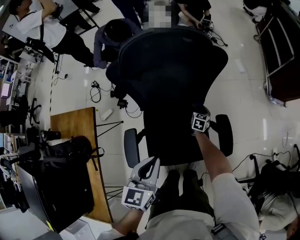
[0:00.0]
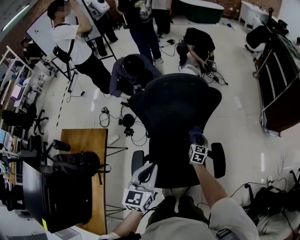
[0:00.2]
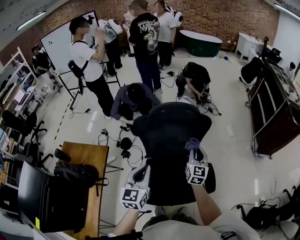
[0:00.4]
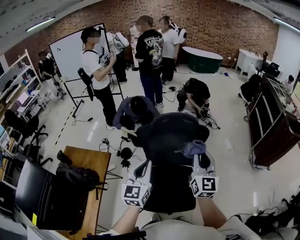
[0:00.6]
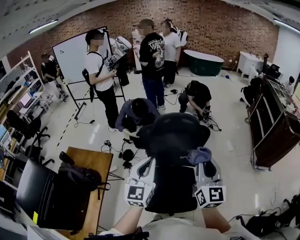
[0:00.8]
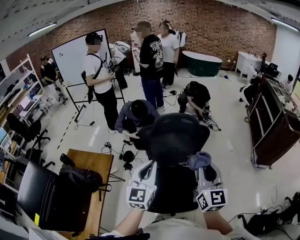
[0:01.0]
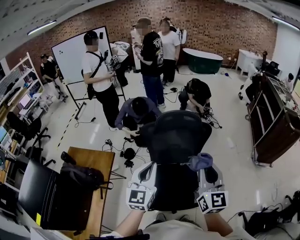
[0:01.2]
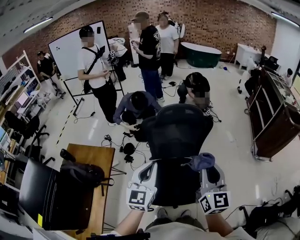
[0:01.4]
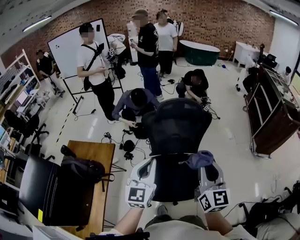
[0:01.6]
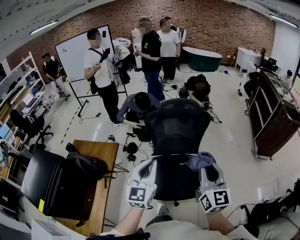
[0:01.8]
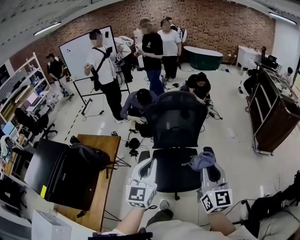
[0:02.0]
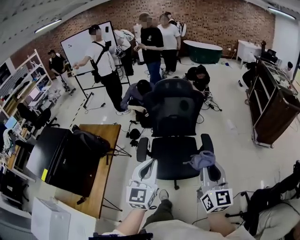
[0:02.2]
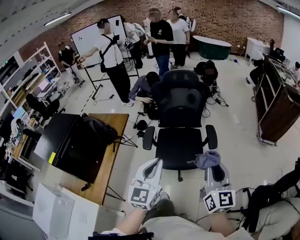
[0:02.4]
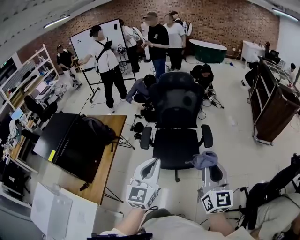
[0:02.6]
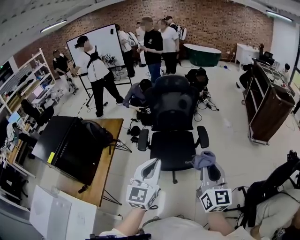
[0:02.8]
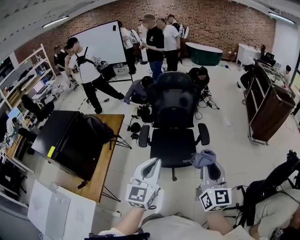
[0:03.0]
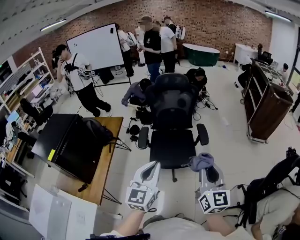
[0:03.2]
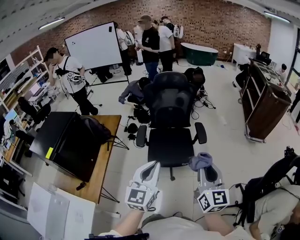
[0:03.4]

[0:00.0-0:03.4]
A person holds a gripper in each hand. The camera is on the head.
0:00.0 to 0:01.6: The left gripper goes approximately 35 cm backward, to the left and upward, and swivels approximately 30 degrees, while the right gripper moves upward and backward, roughly 80 cm, and angles its fingers upward, by approximately 60 degrees.
0:01.6 to 0:03.4: The two grippers travel together, backward, roughly 40 cm.

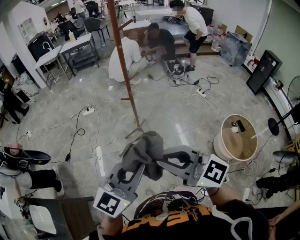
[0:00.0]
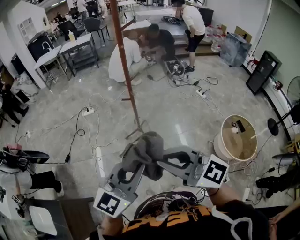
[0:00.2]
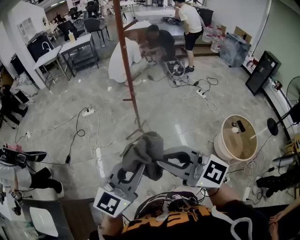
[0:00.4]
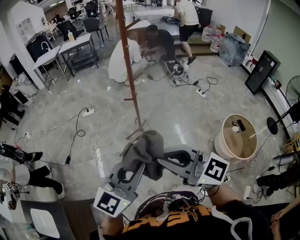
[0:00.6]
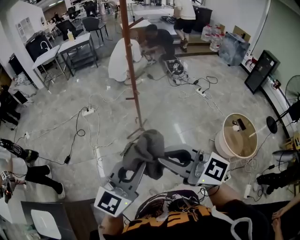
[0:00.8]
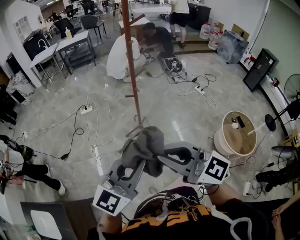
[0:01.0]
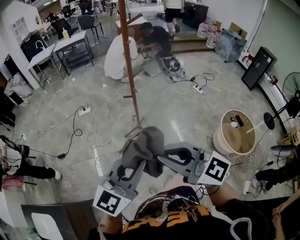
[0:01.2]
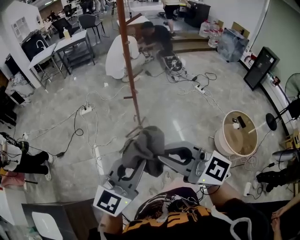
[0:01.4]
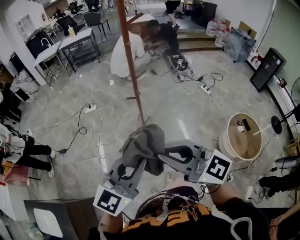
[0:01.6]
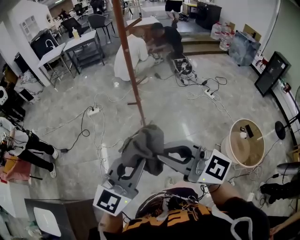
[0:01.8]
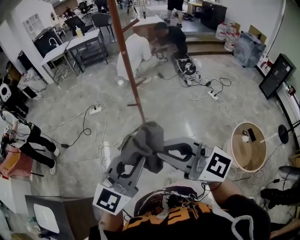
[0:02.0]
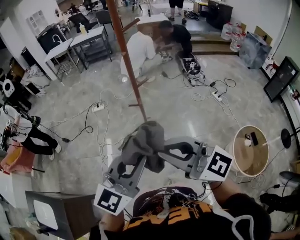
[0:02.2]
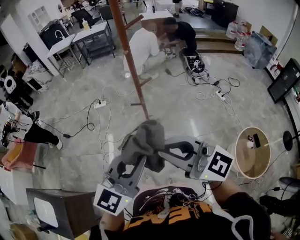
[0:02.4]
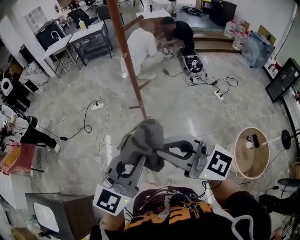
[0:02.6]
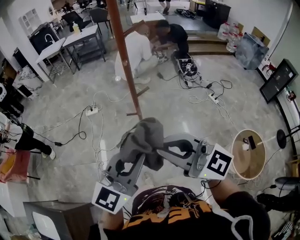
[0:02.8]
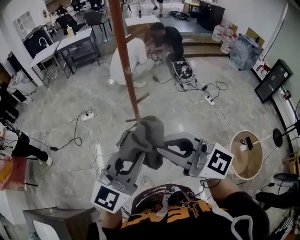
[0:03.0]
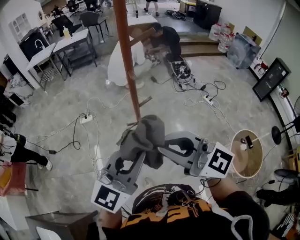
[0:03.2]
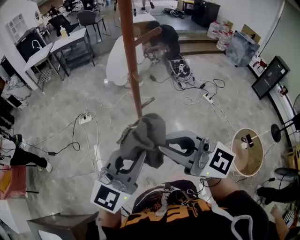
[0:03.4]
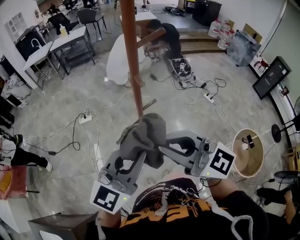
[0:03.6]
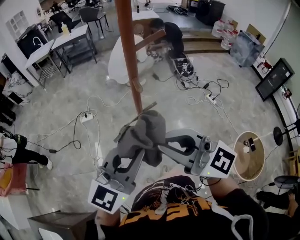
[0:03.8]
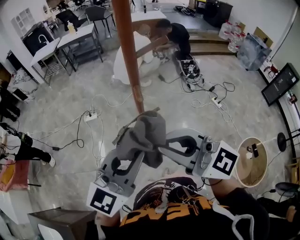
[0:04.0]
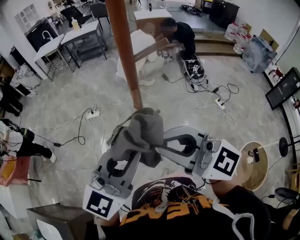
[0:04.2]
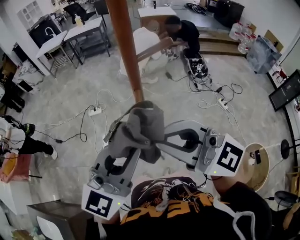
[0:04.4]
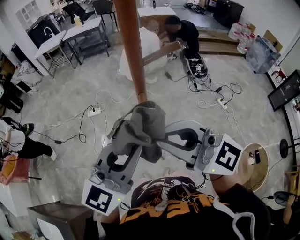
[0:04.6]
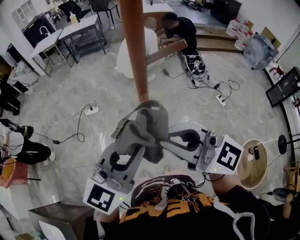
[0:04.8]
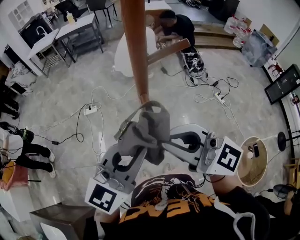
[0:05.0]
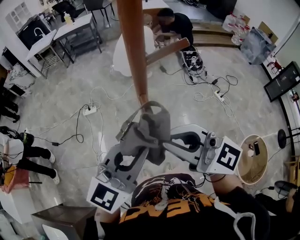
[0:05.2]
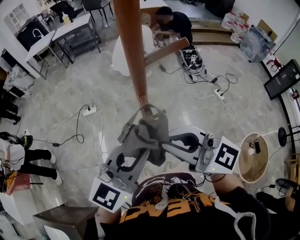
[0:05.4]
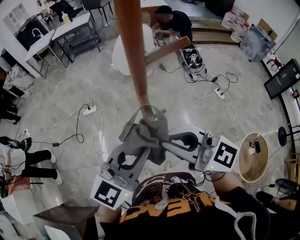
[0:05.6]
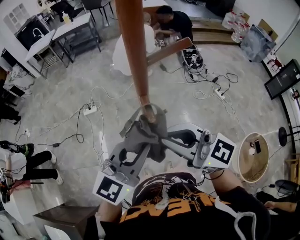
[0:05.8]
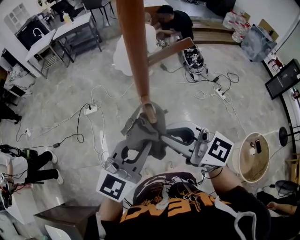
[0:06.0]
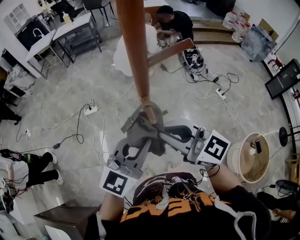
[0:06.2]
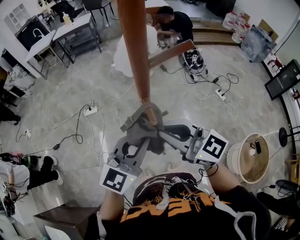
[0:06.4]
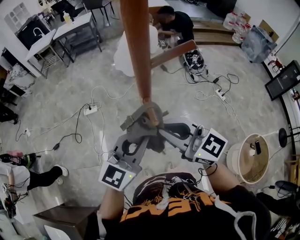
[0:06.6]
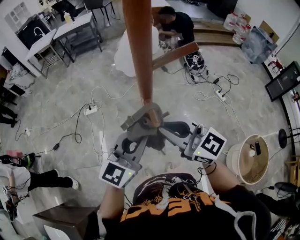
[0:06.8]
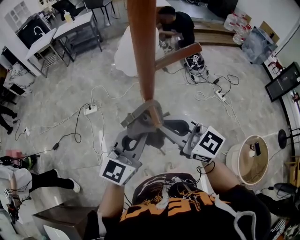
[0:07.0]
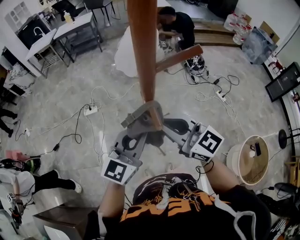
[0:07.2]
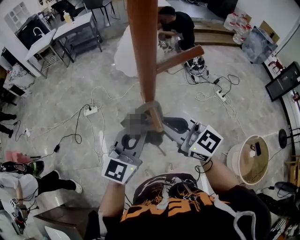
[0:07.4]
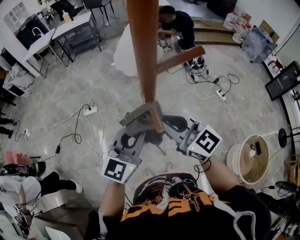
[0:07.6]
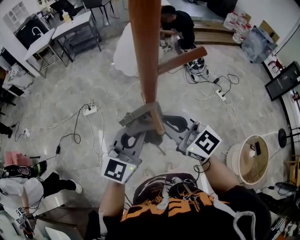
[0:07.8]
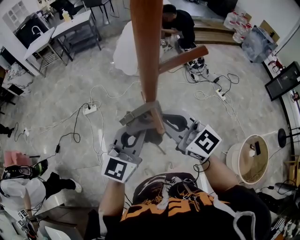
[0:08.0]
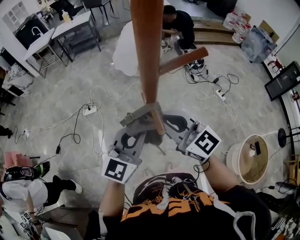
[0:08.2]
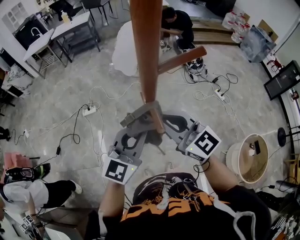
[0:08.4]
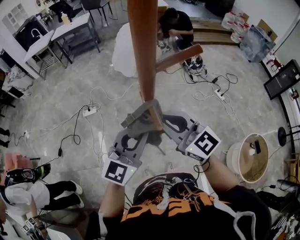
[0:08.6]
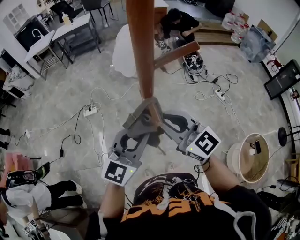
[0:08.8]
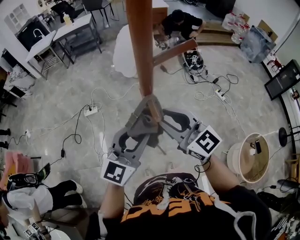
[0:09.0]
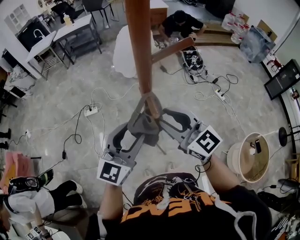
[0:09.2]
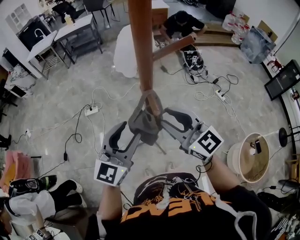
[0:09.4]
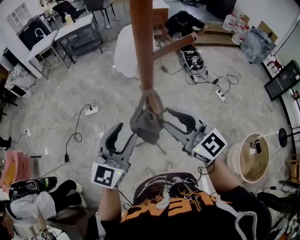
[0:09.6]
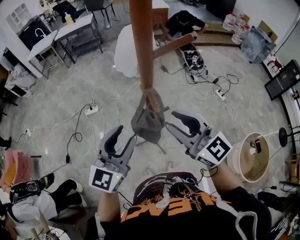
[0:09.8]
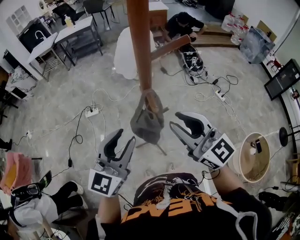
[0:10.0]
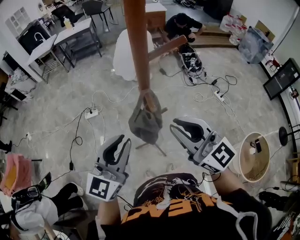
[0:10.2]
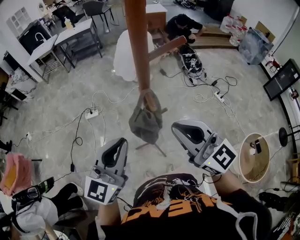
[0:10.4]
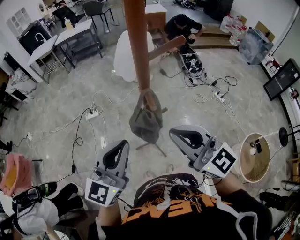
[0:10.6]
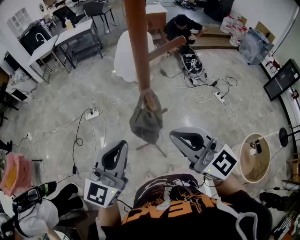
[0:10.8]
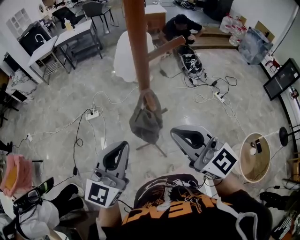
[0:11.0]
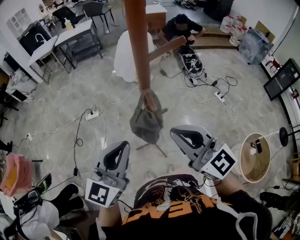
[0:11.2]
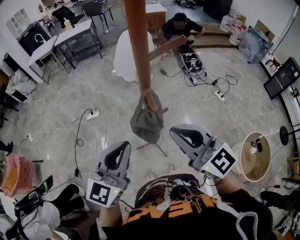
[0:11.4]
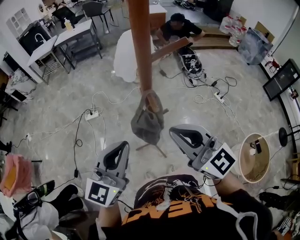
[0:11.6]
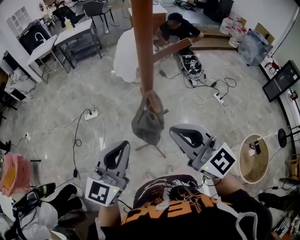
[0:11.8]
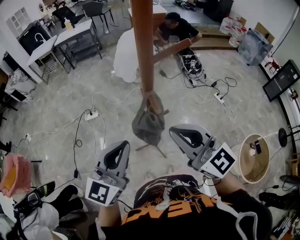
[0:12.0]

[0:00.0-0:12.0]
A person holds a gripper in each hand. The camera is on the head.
0:00.0 to 0:01.6: Both grippers move forward, about 10 cm.
0:01.6 to 0:03.0: The grippers both shift forward by approximately 25 cm.
0:03.0 to 0:04.4: Both grippers move forward, approximately 15 cm.
0:04.4 to 0:06.0: Both grippers move downward and forward, some 10 cm.
0:06.0 to 0:07.6: The grippers both shift forward by approximately 10 cm.
0:07.6 to 0:09.0: The right gripper opens. The left gripper opens.
0:09.0 to 0:10.4: The right gripper is displaced backward and upward by about 10 cm, and closes up; the left gripper travels to the left and backward by about 10 cm, and closes.
0:10.4 to 0:12.0: There are only small adjustments of the grippers.

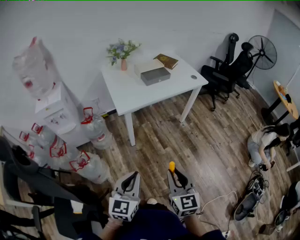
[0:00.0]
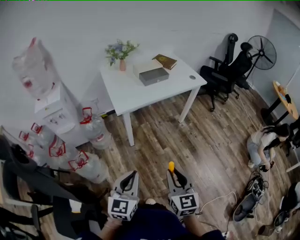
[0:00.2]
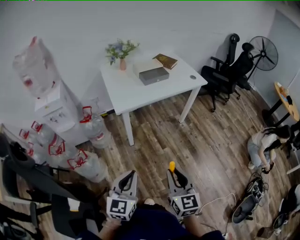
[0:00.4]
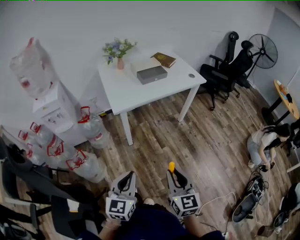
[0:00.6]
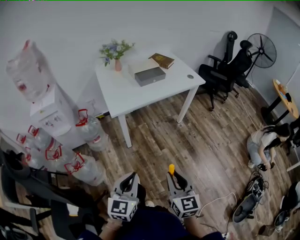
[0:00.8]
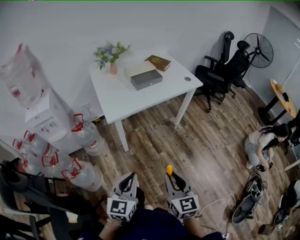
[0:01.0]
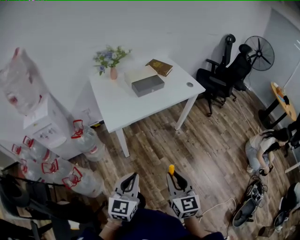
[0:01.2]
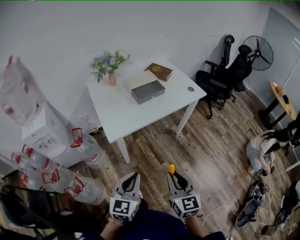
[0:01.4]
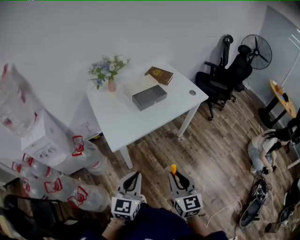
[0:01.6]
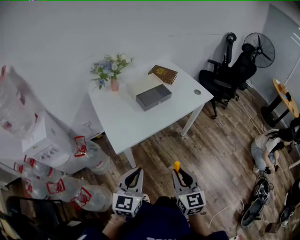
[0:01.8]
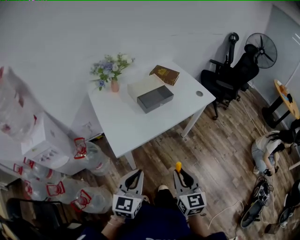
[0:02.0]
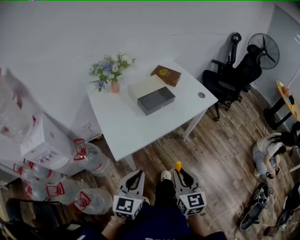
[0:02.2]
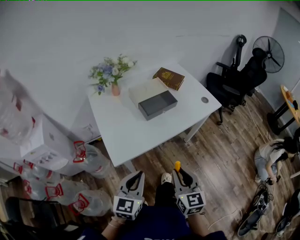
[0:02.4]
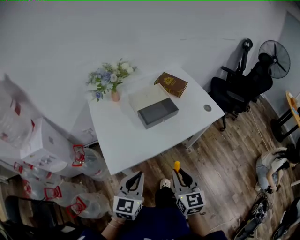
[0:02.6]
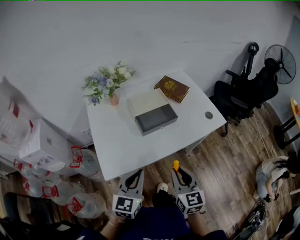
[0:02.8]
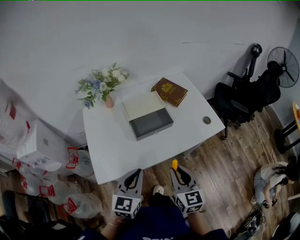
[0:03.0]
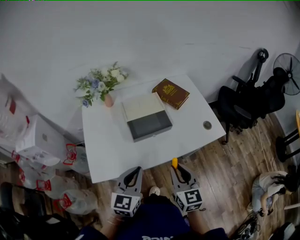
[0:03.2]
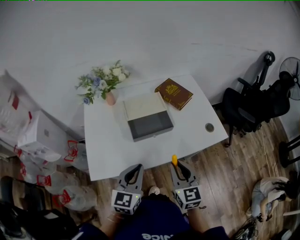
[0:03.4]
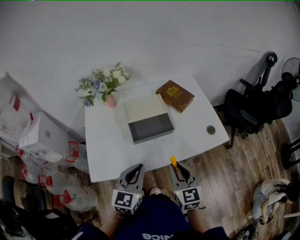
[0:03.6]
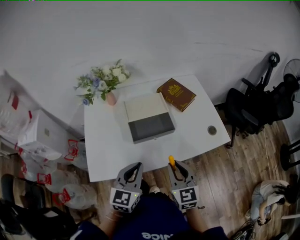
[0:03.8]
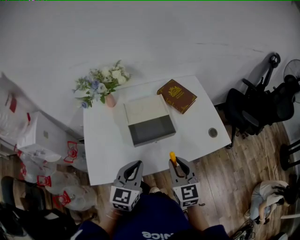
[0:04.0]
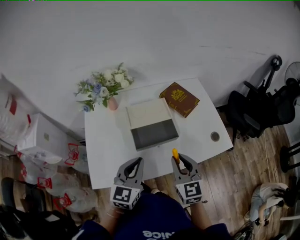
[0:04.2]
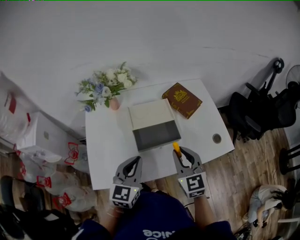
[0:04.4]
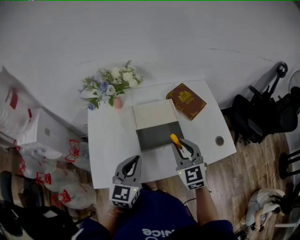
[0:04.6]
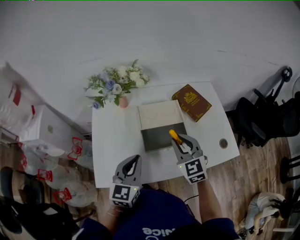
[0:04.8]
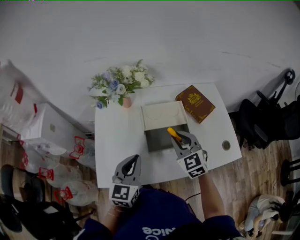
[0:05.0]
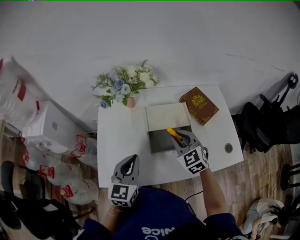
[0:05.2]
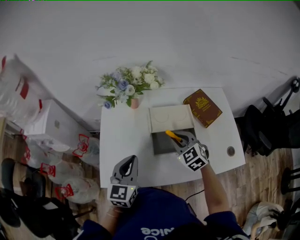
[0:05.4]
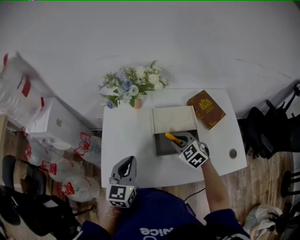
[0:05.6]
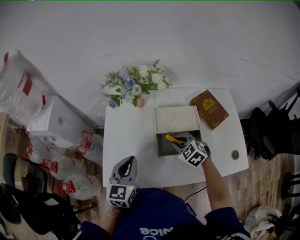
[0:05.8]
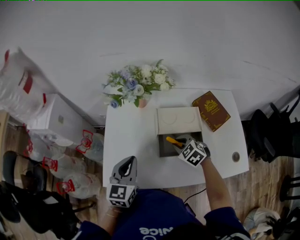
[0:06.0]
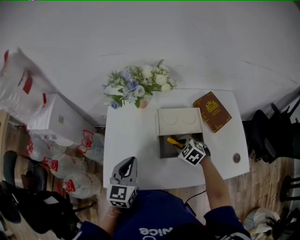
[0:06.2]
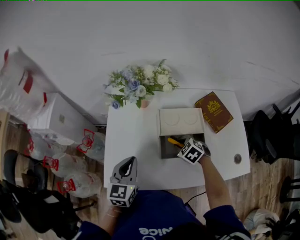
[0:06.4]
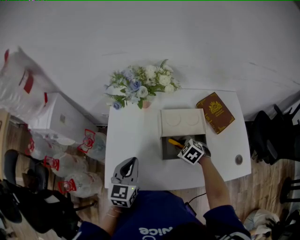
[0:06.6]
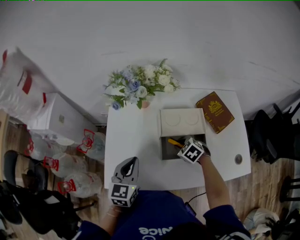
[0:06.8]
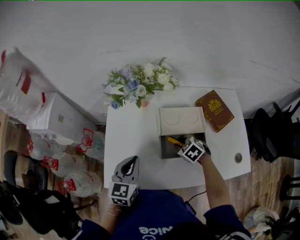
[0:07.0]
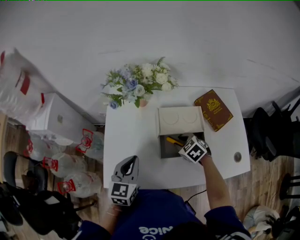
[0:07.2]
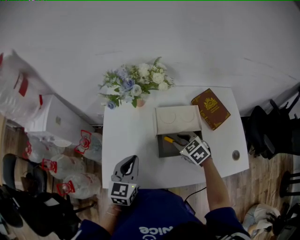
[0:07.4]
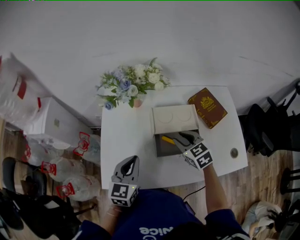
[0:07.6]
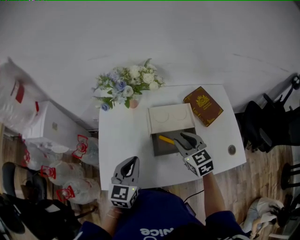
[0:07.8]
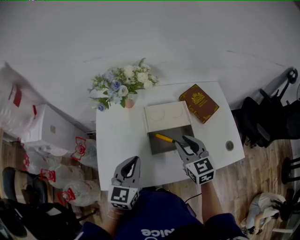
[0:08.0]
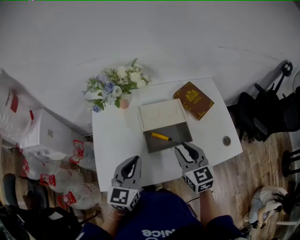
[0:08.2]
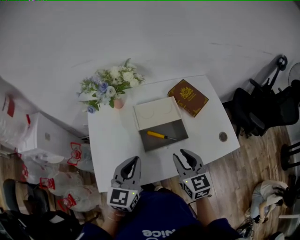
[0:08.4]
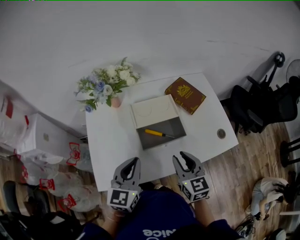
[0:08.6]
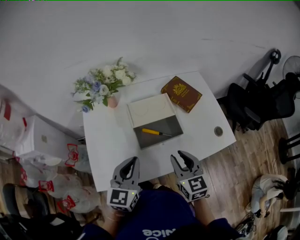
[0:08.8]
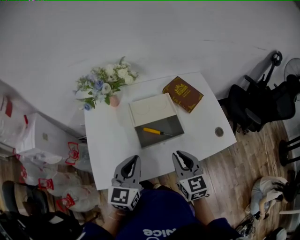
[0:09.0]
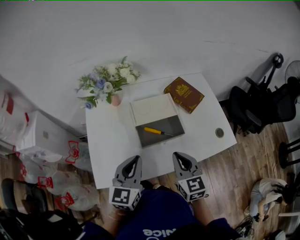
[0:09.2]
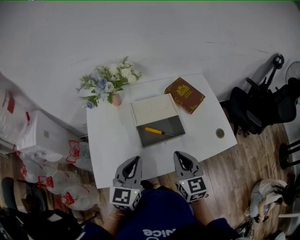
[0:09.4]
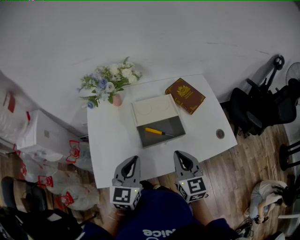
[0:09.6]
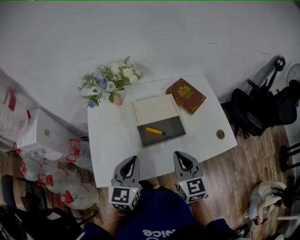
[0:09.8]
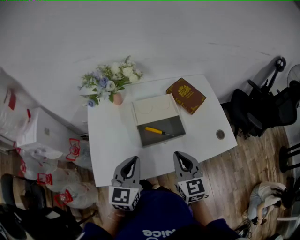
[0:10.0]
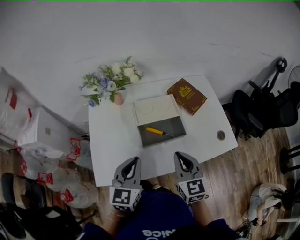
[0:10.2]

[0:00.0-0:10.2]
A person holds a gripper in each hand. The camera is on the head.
0:00.0 to 0:01.4: Both grippers move forward, about 20 cm.
0:01.4 to 0:03.0: Both grippers travel together forward, roughly 35 cm.
0:03.0 to 0:04.4: Both grippers travel together forward, roughly 15 cm. The right gripper swivels some 20 degrees.
0:04.4 to 0:05.8: The right gripper is displaced downward, forward and to the left by roughly 20 cm, and tilts its fingers about 30 degrees downward. Meanwhile the left gripper heads to the left, covering some 10 cm.
0:07.2 to 0:08.8: The right gripper moves some 25 cm, and tips its fingers upward by some 40 degrees, while the left gripper changes place by roughly 10 cm.
0:08.8 to 0:10.2: The right gripper closes up.
